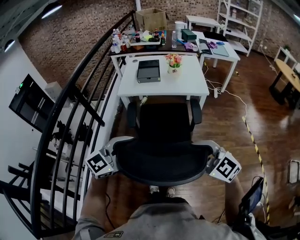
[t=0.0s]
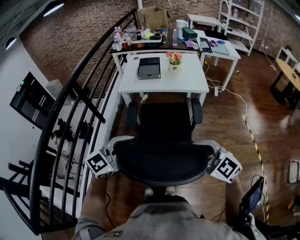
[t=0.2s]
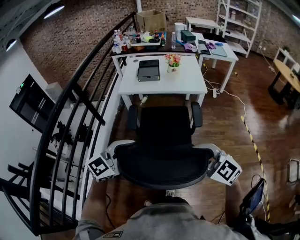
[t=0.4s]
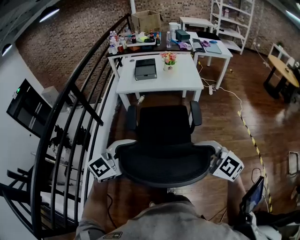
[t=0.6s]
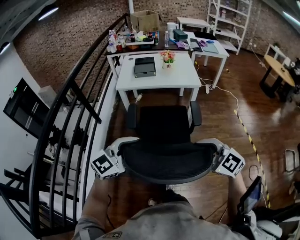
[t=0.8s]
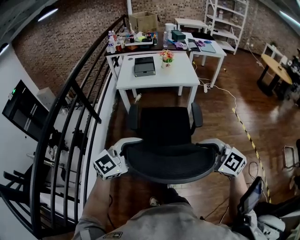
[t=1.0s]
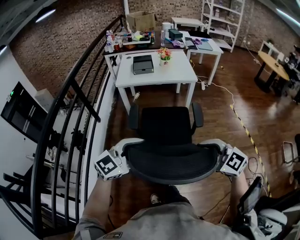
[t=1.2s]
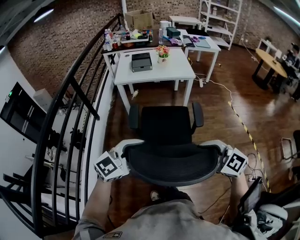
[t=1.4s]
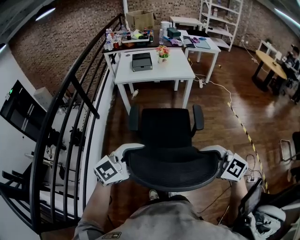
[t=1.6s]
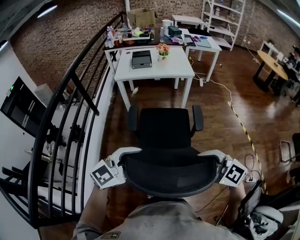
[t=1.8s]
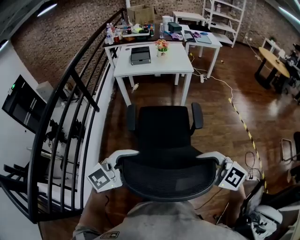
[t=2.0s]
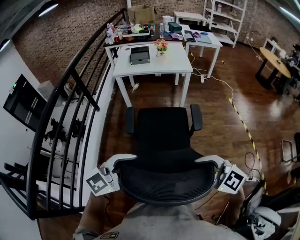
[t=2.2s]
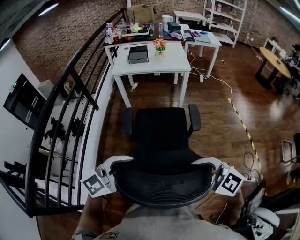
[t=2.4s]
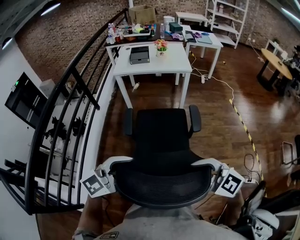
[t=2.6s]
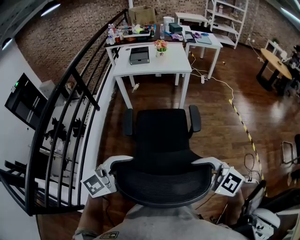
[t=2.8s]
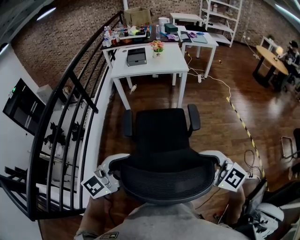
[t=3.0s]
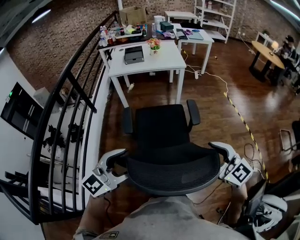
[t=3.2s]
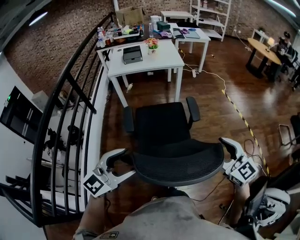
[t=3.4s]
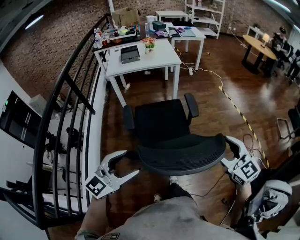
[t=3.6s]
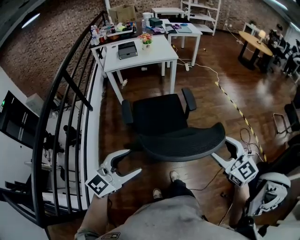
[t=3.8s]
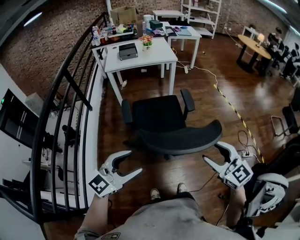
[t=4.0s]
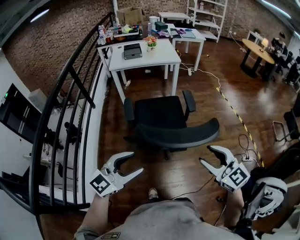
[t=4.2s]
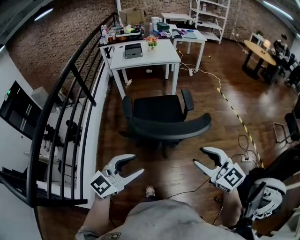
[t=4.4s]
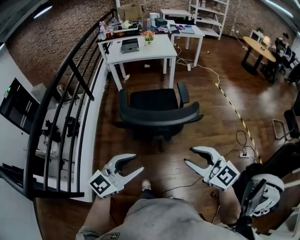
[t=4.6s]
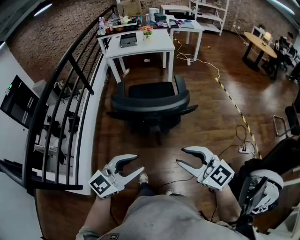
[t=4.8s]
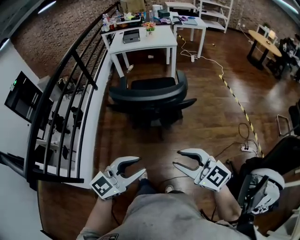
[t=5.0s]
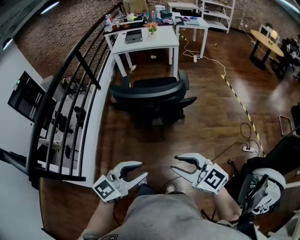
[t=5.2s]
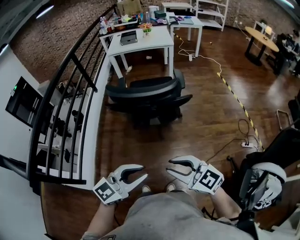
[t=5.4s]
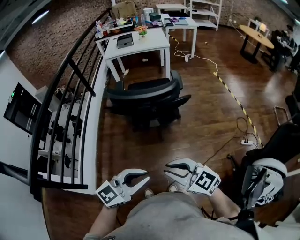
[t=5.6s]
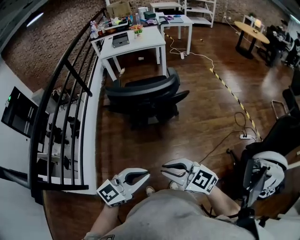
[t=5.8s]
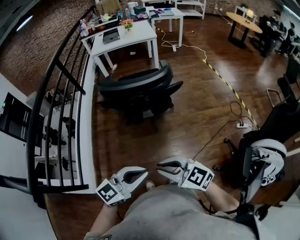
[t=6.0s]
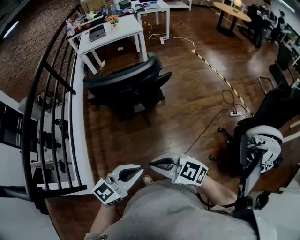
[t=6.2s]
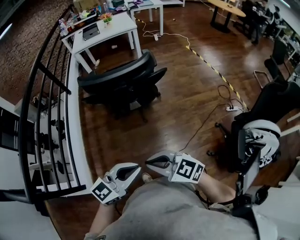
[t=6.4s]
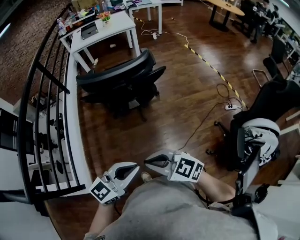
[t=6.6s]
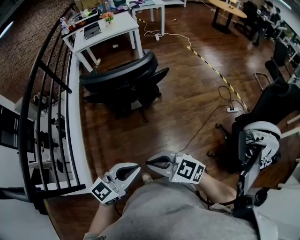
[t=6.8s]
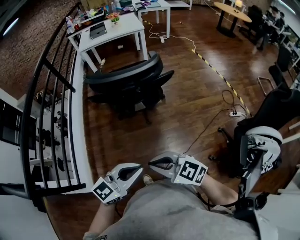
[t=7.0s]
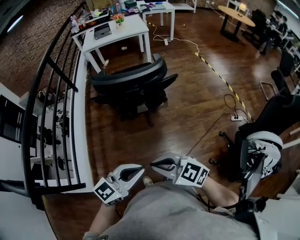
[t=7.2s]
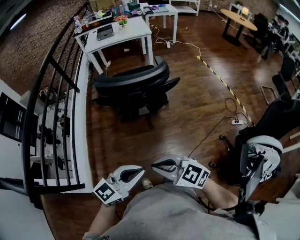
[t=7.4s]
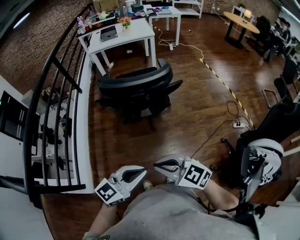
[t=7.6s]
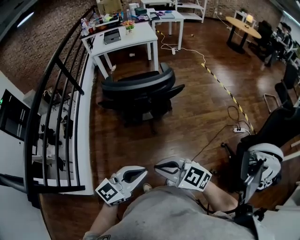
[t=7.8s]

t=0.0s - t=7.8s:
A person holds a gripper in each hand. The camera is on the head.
t=0.0s - t=1.6s: Both grippers move backward, roughly 25 cm.
t=1.6s - t=3.2s: The left gripper is displaced backward by roughly 10 cm. The right gripper heads to the right and backward, covering approximately 10 cm, and opens.
t=3.2s - t=4.6s: The right gripper moves backward, about 20 cm, and closes. The left gripper is displaced backward and to the right by about 20 cm, and closes up.
t=4.6s - t=6.2s: The right gripper shifts by approximately 20 cm, and closes; the left gripper changes place by roughly 20 cm, and closes its fingers.
t=6.2s - t=7.8s: The grippers move only a little.

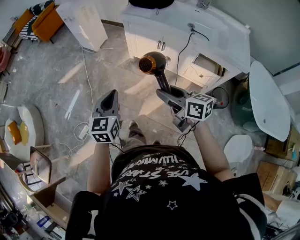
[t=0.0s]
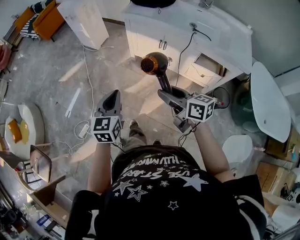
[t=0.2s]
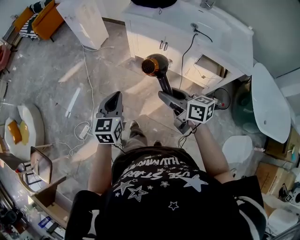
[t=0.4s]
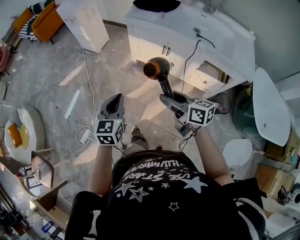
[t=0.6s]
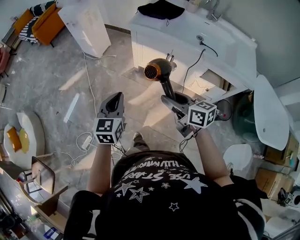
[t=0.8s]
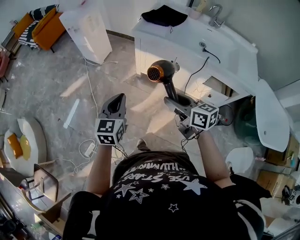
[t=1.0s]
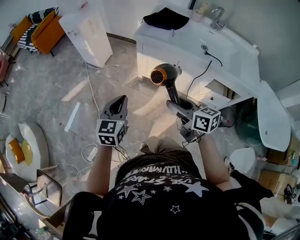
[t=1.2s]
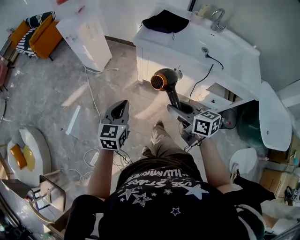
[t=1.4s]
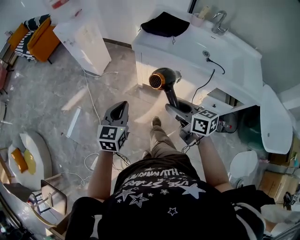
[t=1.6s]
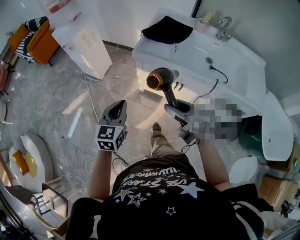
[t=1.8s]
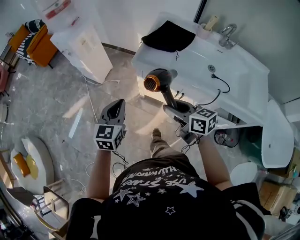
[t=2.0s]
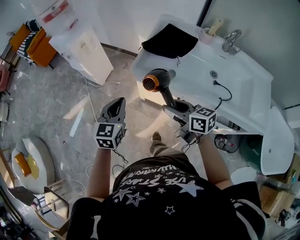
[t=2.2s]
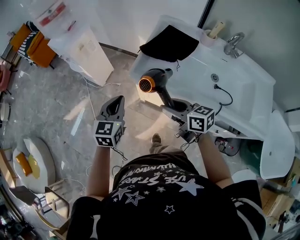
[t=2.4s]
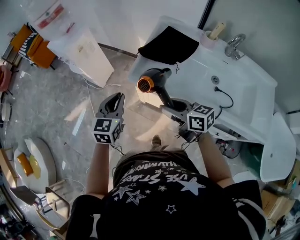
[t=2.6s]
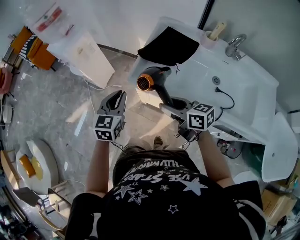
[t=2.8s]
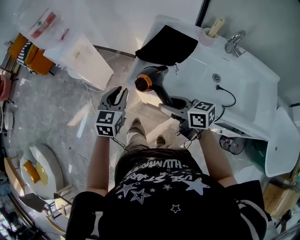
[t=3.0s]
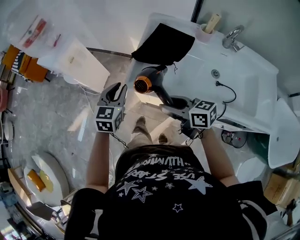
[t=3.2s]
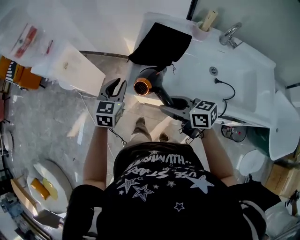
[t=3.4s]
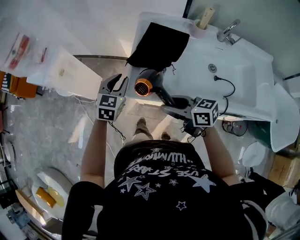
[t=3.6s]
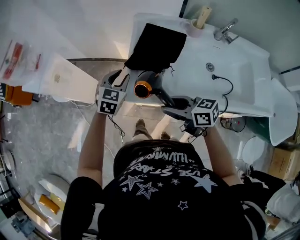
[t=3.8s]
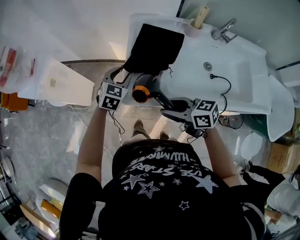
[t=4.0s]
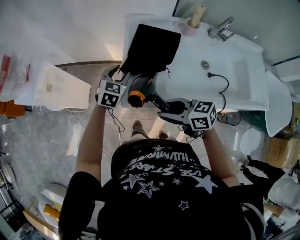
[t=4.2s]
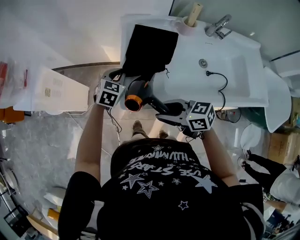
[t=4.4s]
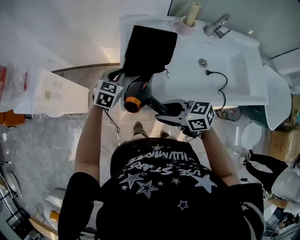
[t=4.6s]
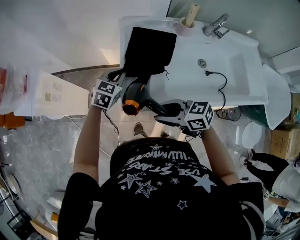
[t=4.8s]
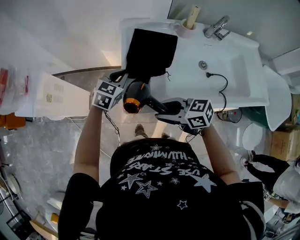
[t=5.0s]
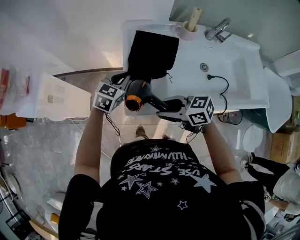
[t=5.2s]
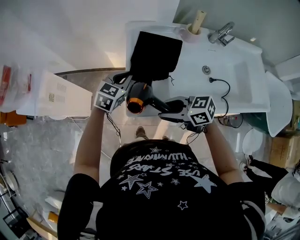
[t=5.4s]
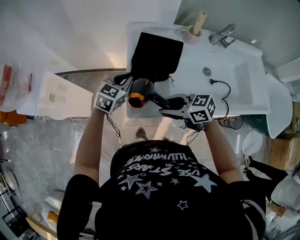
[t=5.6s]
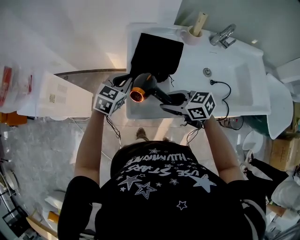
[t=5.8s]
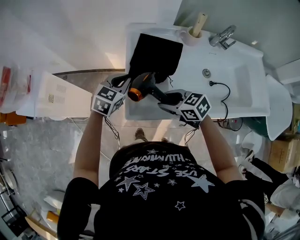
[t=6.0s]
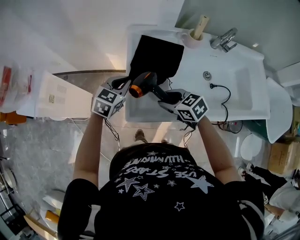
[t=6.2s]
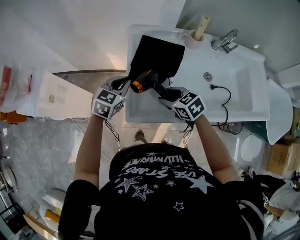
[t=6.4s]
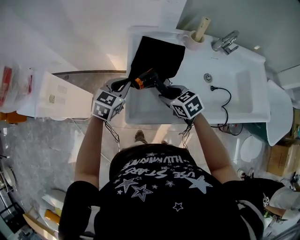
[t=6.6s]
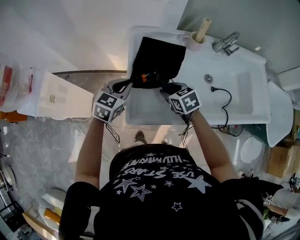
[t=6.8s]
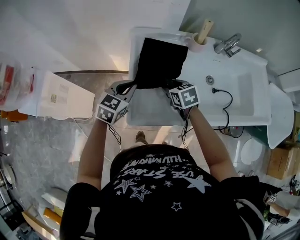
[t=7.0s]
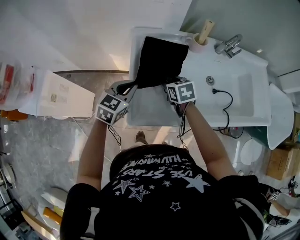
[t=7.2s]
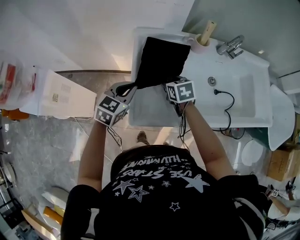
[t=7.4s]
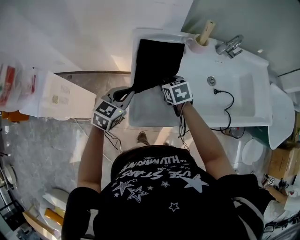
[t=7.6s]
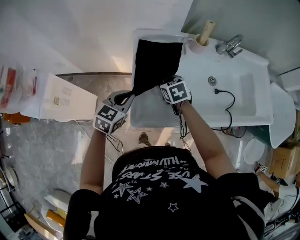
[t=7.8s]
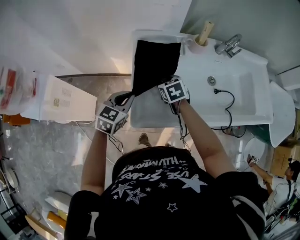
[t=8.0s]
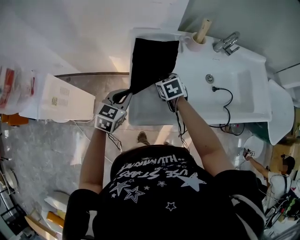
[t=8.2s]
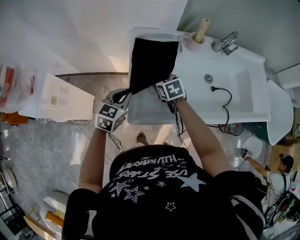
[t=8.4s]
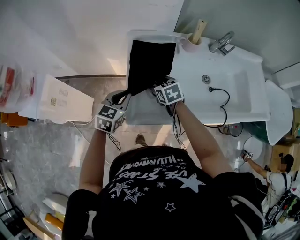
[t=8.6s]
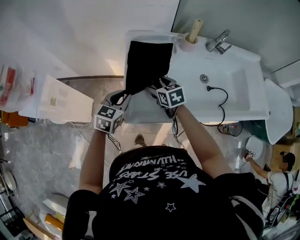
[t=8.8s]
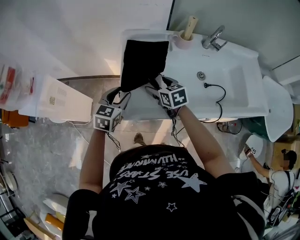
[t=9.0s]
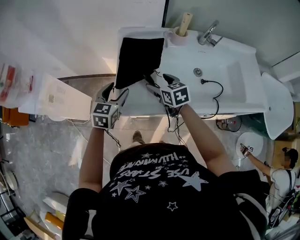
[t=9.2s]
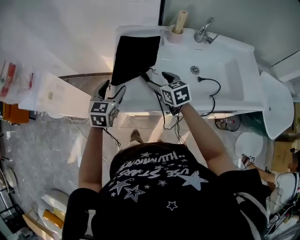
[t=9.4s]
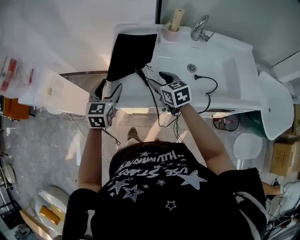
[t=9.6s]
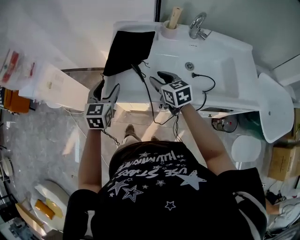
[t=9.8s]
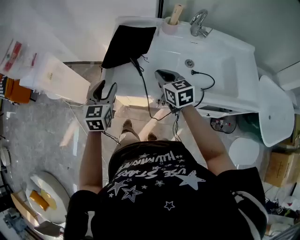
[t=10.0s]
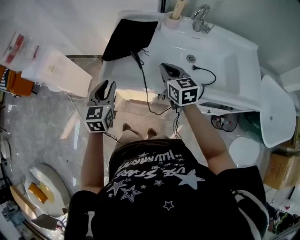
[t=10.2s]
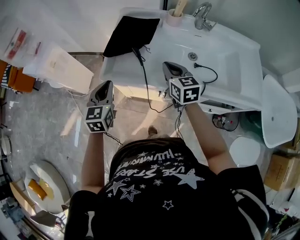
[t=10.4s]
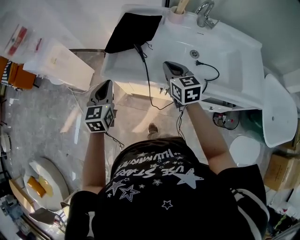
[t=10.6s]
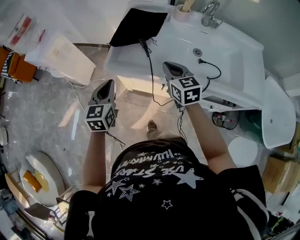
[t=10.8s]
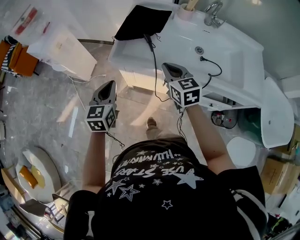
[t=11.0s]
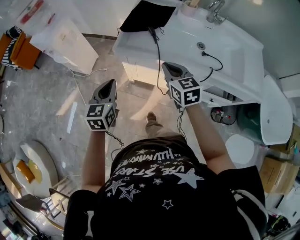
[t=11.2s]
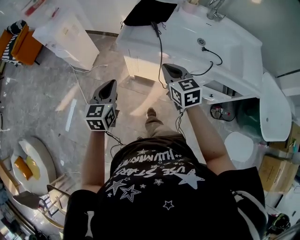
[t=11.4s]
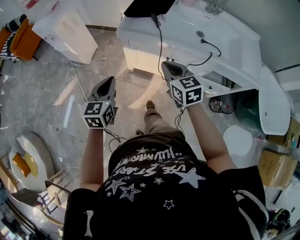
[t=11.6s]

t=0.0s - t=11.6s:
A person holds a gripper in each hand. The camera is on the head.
t=0.0s - t=1.4s: The grippers both shift forward by approximately 20 cm.
t=1.4s - t=2.8s: Both grippers travel together forward, about 30 cm.
t=2.8s - t=4.4s: The right gripper travels forward by about 10 cm. Meanwhile the left gripper goes about 30 cm forward, to the right and downward, turns by approximately 40 degrees, and opens and closes again.
t=4.4s - t=5.8s: The right gripper is displaced forward by roughly 5 cm.
t=5.8s - t=7.2s: The right gripper heads forward, covering about 15 cm, and rotates about 40 degrees.
t=7.2s - t=8.8s: The right gripper opens.
t=8.8s - t=10.2s: The left gripper goes some 15 cm backward, changes its angle by approximately 30 degrees, and opens and closes again. Meanwhile the right gripper travels to the right, backward and upward by some 20 cm, and closes.
t=10.2s - t=11.6s: Both grippers travel together backward and to the left, approximately 25 cm. The left gripper closes.

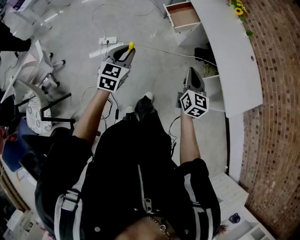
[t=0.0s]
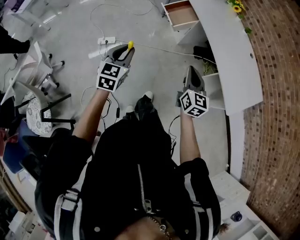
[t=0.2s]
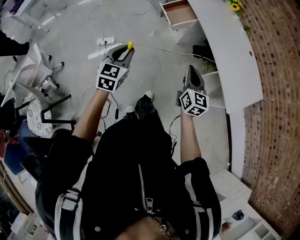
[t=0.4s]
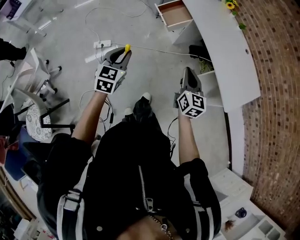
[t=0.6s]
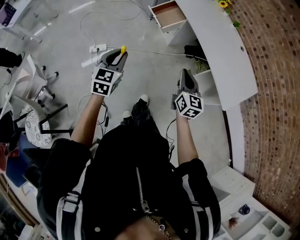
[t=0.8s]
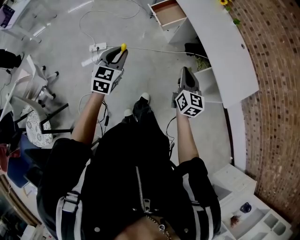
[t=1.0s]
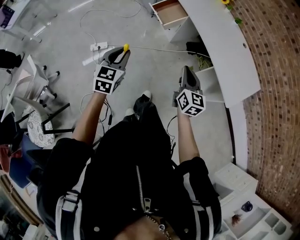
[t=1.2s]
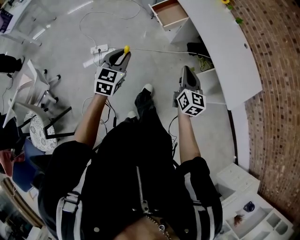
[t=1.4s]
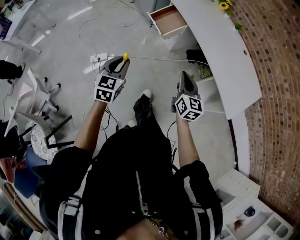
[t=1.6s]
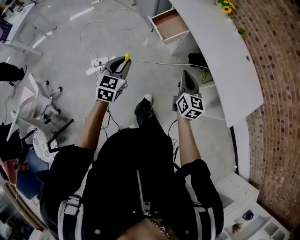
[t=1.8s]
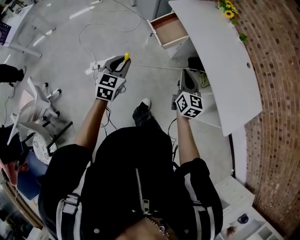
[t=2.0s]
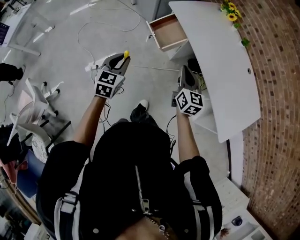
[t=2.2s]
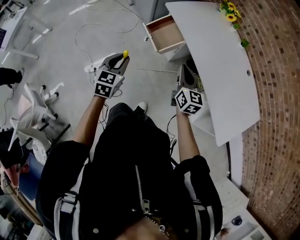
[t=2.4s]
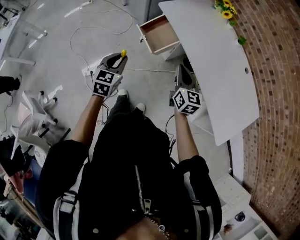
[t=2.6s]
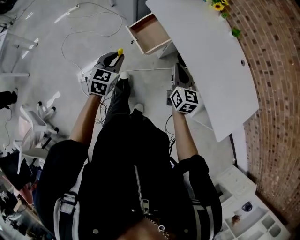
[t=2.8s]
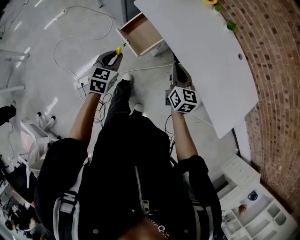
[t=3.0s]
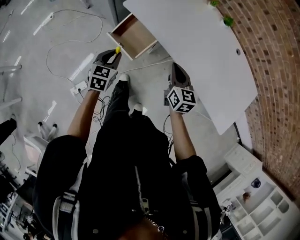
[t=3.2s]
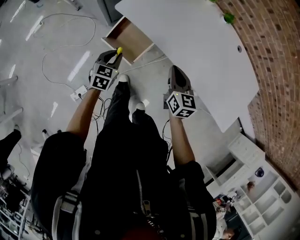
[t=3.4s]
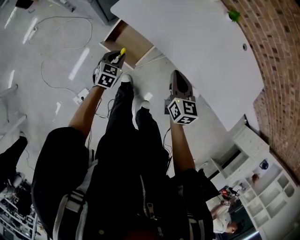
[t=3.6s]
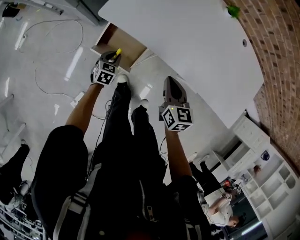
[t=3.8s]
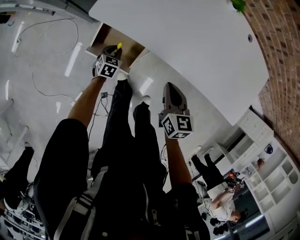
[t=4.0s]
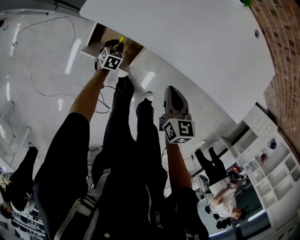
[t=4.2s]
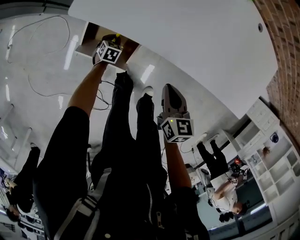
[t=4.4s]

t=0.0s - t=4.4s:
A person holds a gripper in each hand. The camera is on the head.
t=0.0s - t=1.4s: The grippers make only small movements.
t=1.4s - t=3.0s: Both grippers travel together forward, about 40 cm.
t=3.0s - t=4.4s: The left gripper heads downward, covering approximately 50 cm, and tips its fingers downward by approximately 30 degrees. The right gripper moves downward, about 20 cm, and rotates some 40 degrees.
